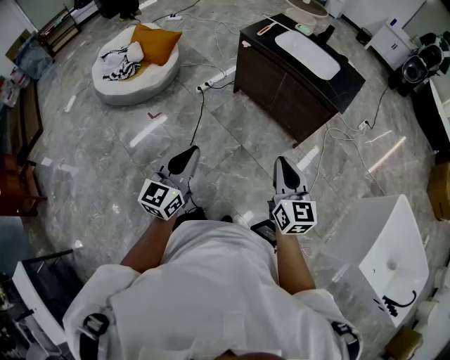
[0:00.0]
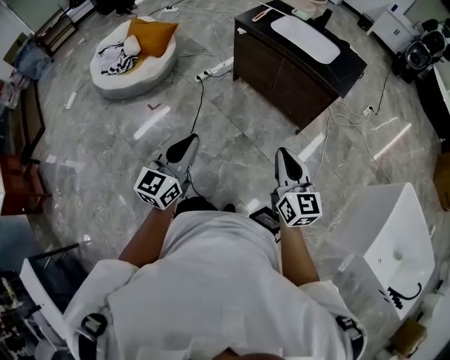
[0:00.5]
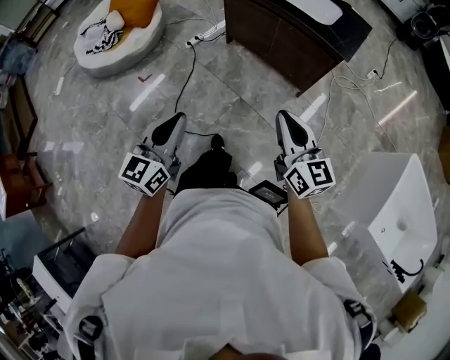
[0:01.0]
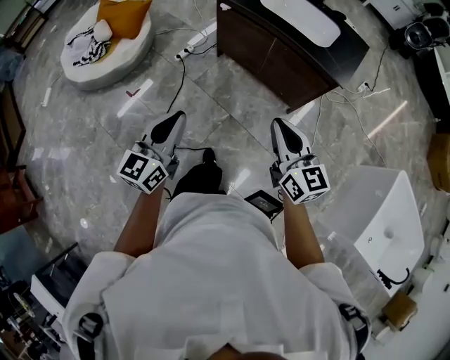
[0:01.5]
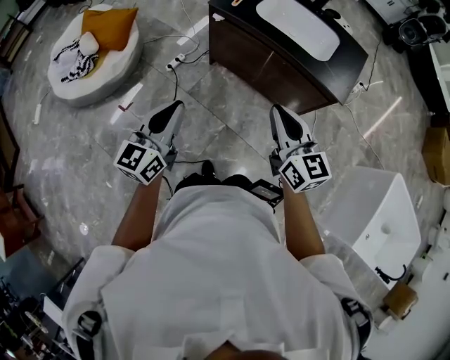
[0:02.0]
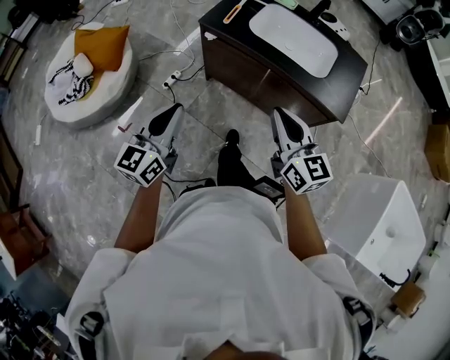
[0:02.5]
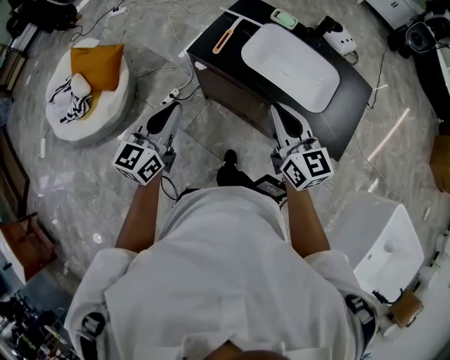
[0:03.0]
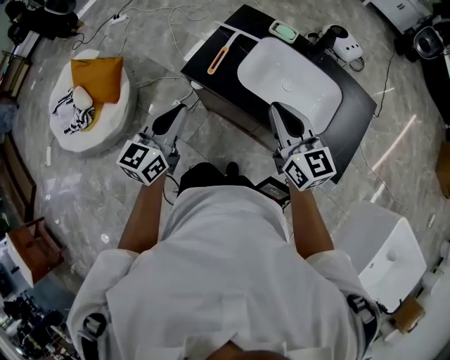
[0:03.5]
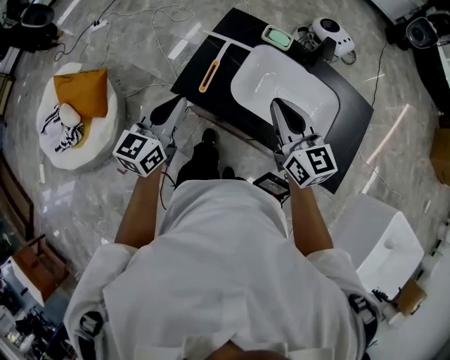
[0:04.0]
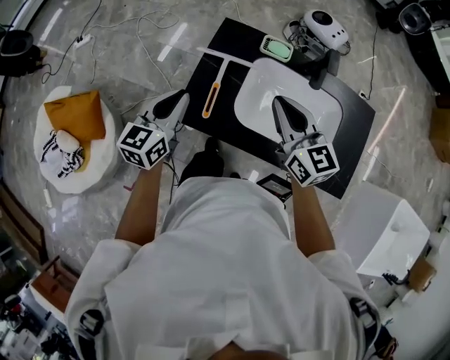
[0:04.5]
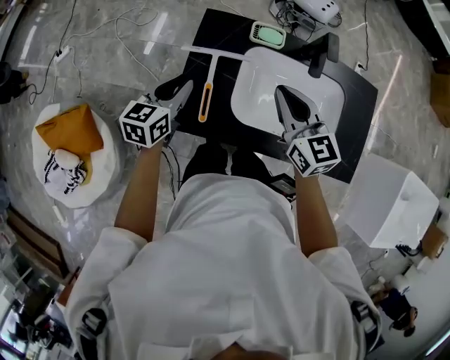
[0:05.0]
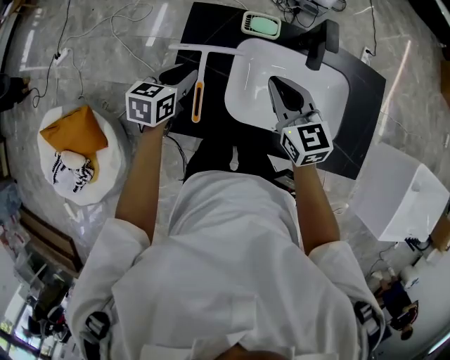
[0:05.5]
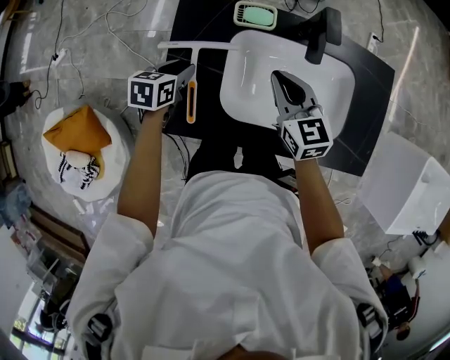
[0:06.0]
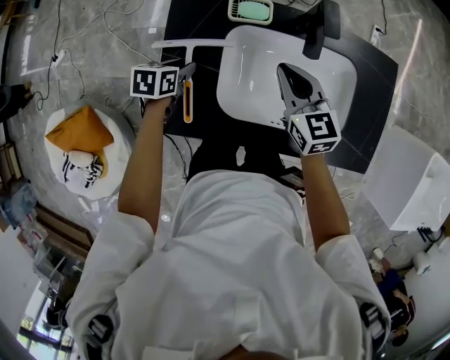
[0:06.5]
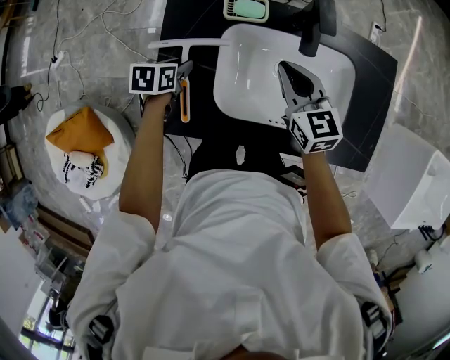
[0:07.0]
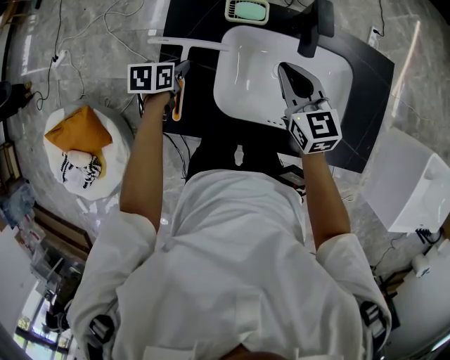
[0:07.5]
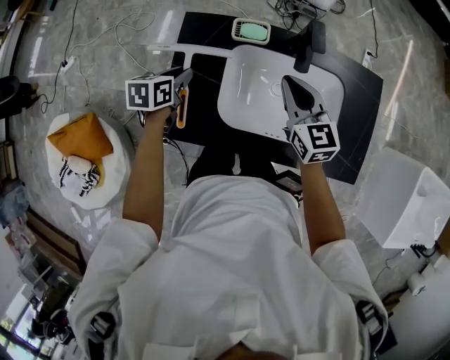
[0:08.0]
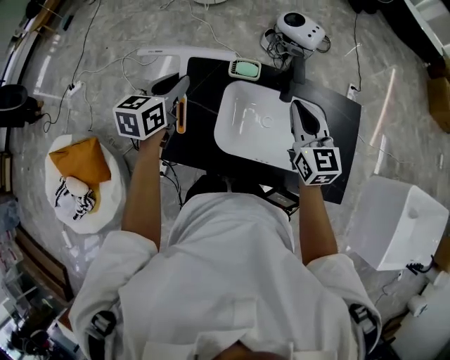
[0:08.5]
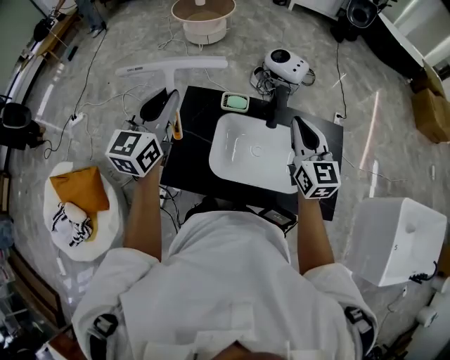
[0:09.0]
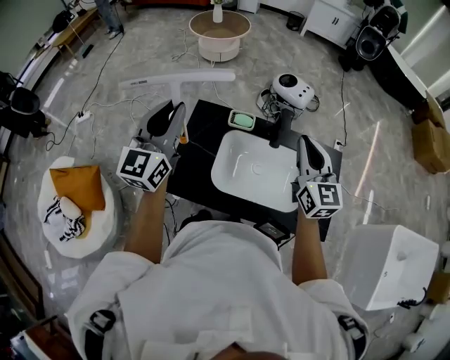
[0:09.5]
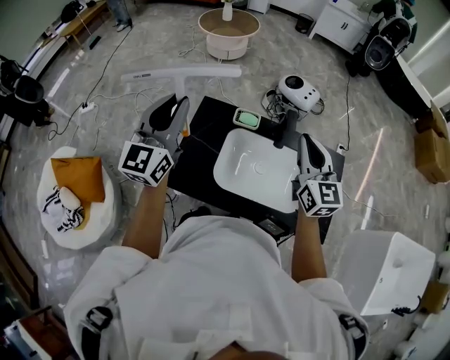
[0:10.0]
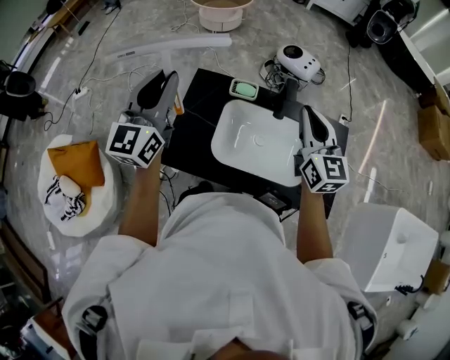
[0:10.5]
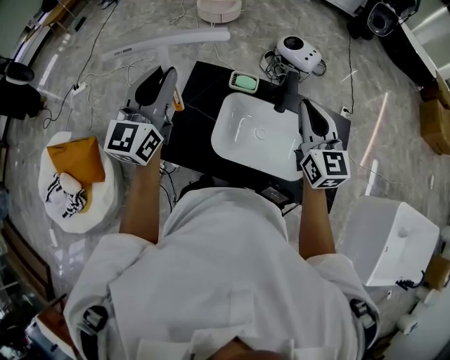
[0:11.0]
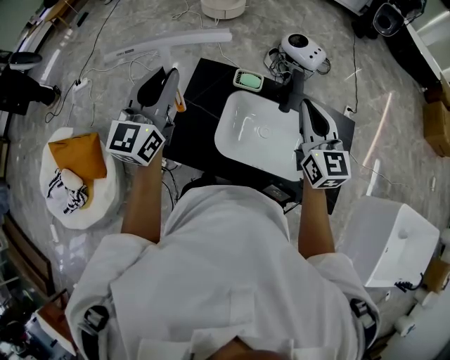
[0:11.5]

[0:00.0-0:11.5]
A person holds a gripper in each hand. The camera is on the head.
0.0 to 2.0 s: The grippers both shift forward by approximately 30 cm.
2.0 to 4.0 s: The two grippers travel together, forward, some 50 cm.
4.0 to 6.0 s: Both grippers move forward and downward, about 30 cm. The left gripper points its fingers roughly 40 degrees further downward, and opens up. The right gripper turns by approximately 20 degrees.
6.0 to 7.5 s: The grippers stay close to where they were, moving slightly.
7.5 to 9.5 s: The left gripper heads upward, covering approximately 40 cm, and tilts its fingers roughly 60 degrees upward. The right gripper is displaced upward by approximately 25 cm, and rotates some 20 degrees.
9.5 to 11.5 s: There are only small adjustments of the grippers.

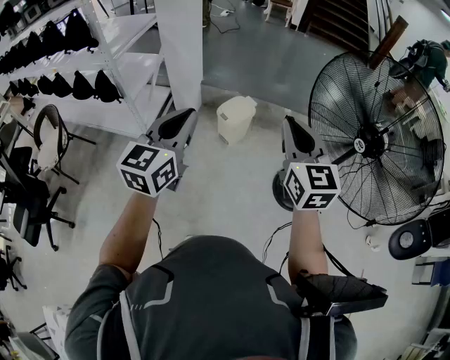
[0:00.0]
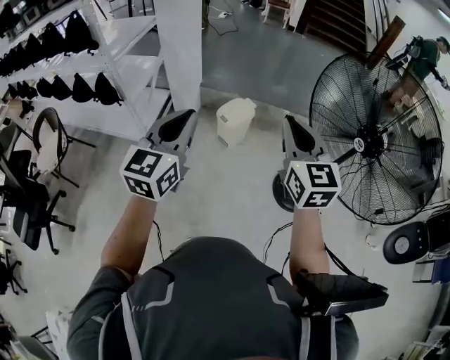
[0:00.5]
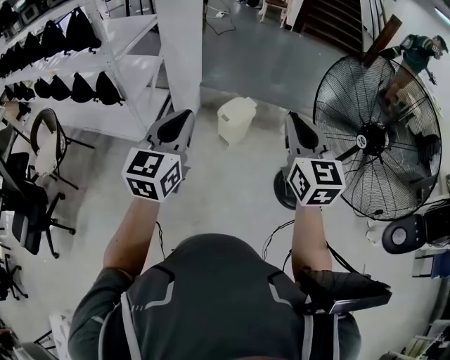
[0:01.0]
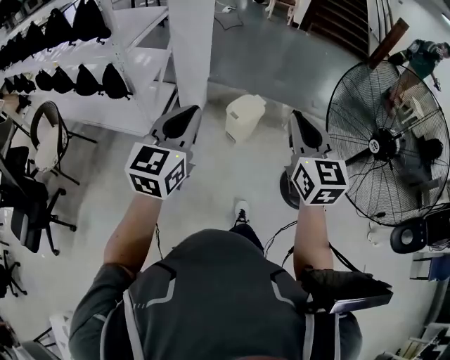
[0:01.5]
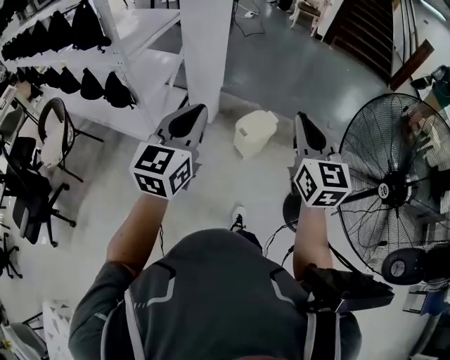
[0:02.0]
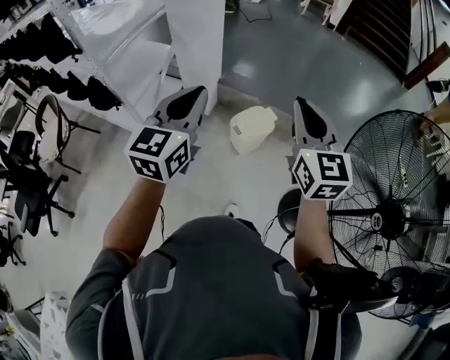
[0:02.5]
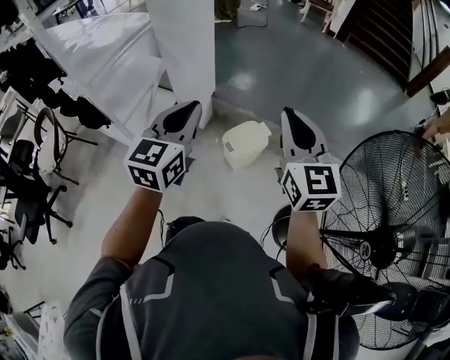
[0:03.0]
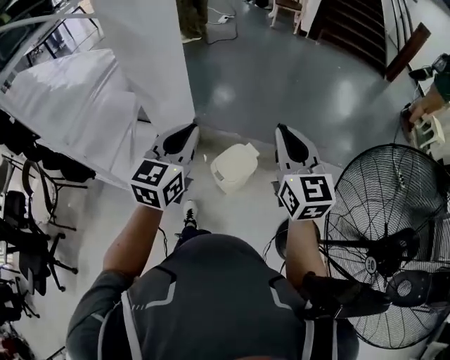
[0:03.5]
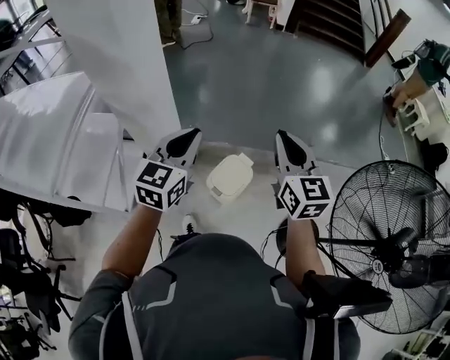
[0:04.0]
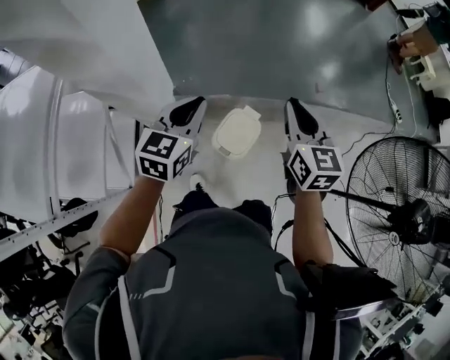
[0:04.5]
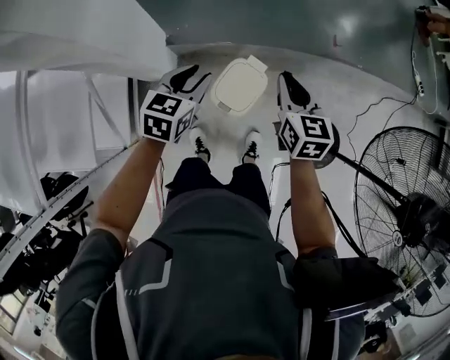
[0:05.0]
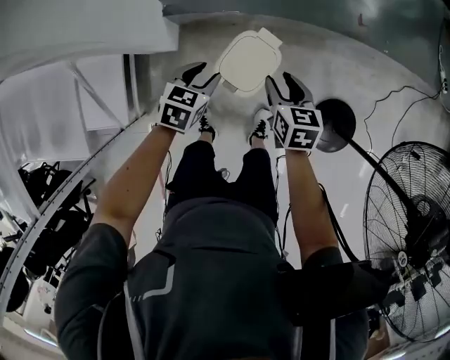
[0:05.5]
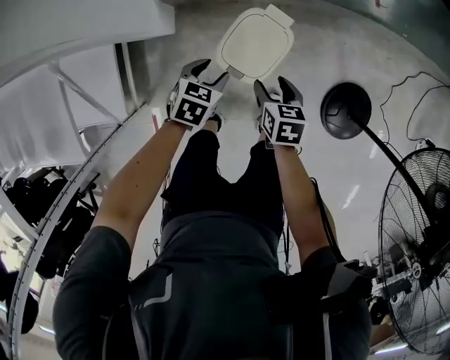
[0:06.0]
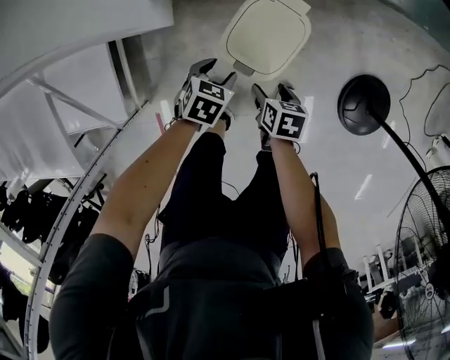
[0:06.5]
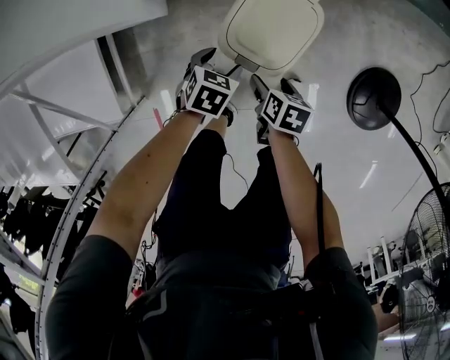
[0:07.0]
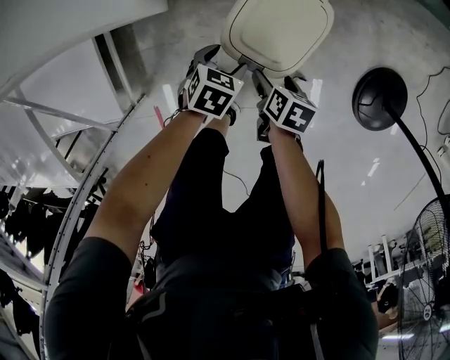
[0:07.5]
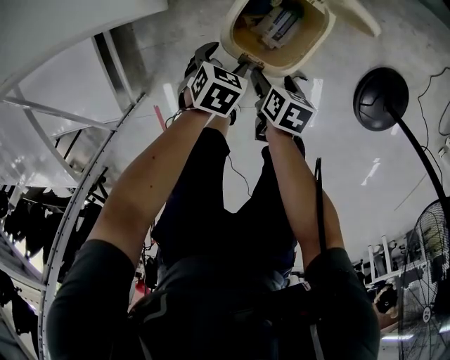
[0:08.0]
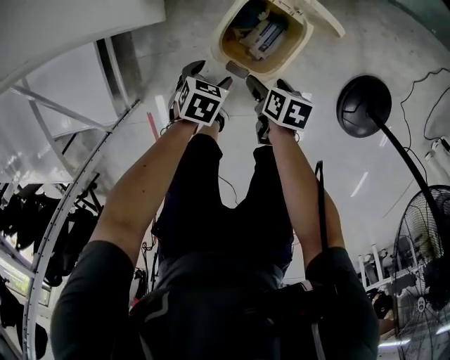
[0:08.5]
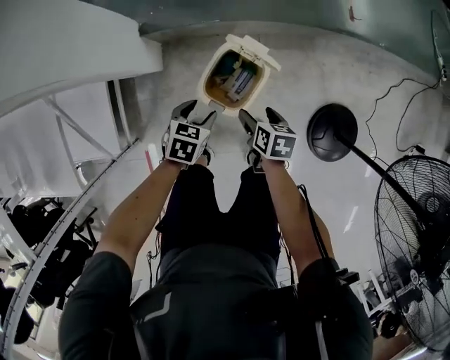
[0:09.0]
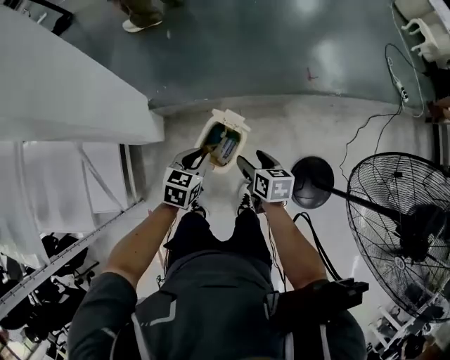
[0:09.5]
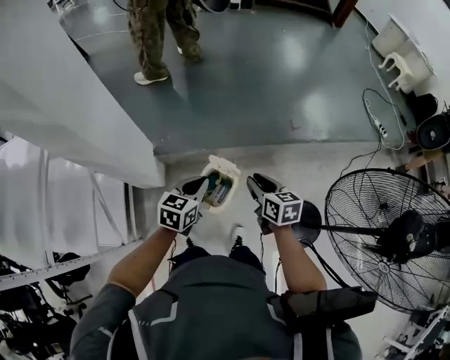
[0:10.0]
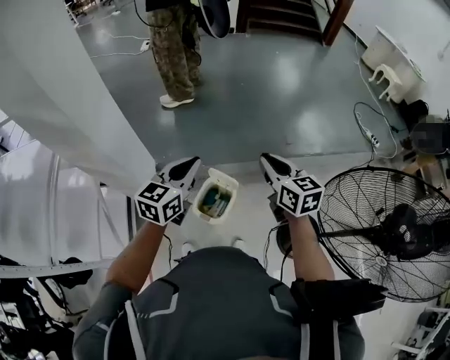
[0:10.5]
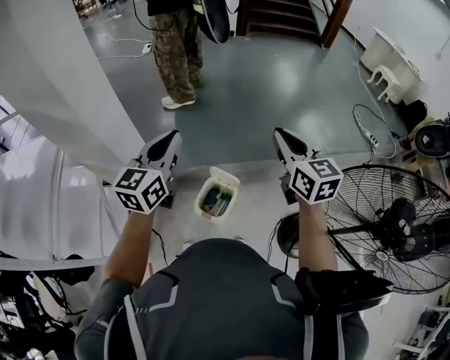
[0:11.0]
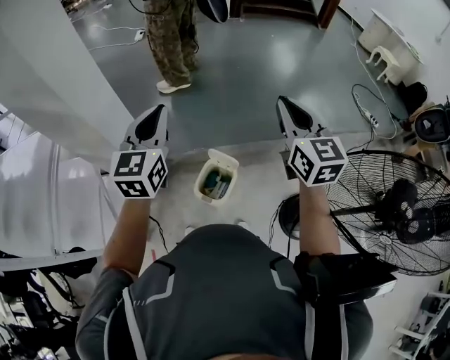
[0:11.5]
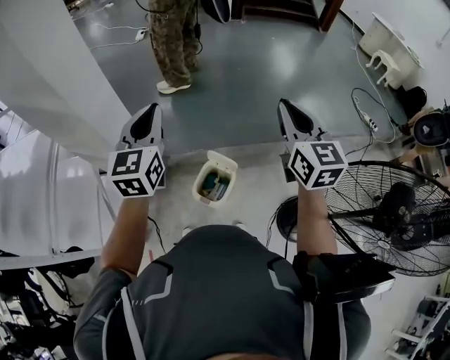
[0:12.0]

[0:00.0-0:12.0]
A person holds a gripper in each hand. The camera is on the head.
0.0 to 2.0 s: The two grippers go some 15 cm forward and to the left.
2.0 to 4.0 s: Both grippers travel together forward, about 40 cm.
4.0 to 6.0 s: The two grippers go approximately 60 cm downward. The left gripper angles its fingers downward, by about 50 degrees, and opens its fingers; the right gripper tips its fingers downward by some 50 degrees, and opens up.
6.0 to 8.0 s: Both grippers travel together downward, roughly 20 cm. The right gripper swivels some 30 degrees.
8.0 to 10.0 s: Both grippers travel together upward, some 50 cm. The left gripper angles its fingers upward, by some 40 degrees, and closes its fingers, while the right gripper angles its fingers upward, by about 30 degrees, and closes its fingers.
10.0 to 12.0 s: The grippers both shift upward by some 30 cm. The right gripper turns by about 40 degrees. The left gripper rotates some 40 degrees.

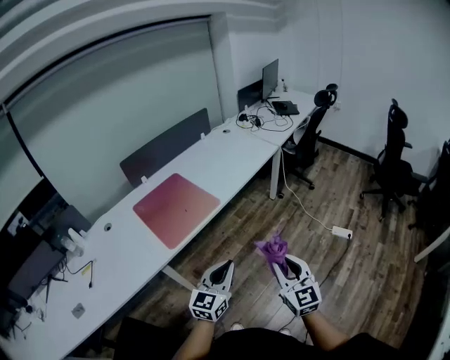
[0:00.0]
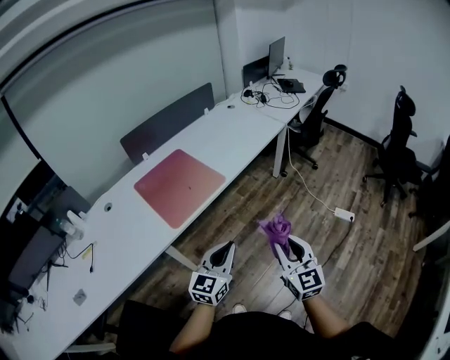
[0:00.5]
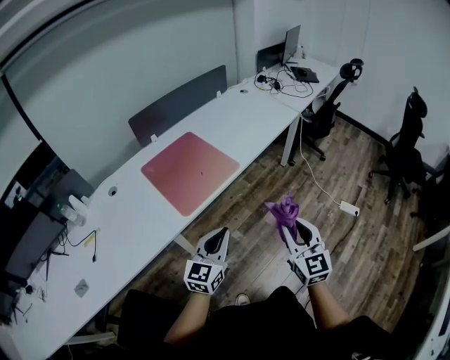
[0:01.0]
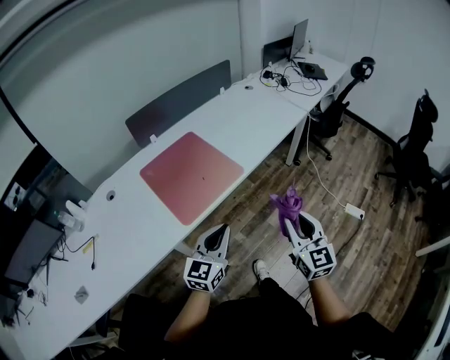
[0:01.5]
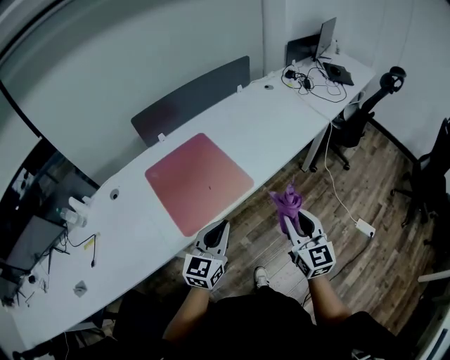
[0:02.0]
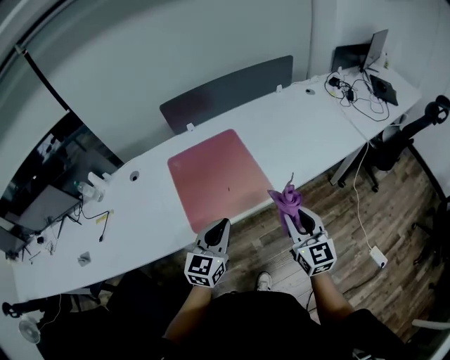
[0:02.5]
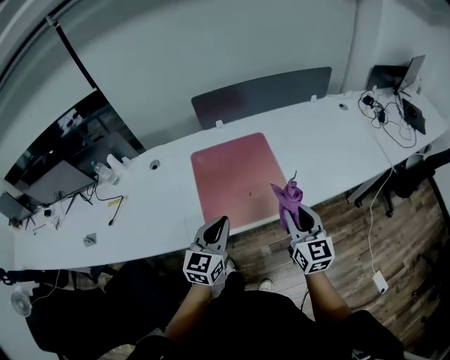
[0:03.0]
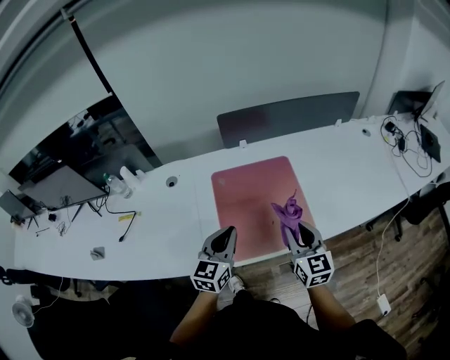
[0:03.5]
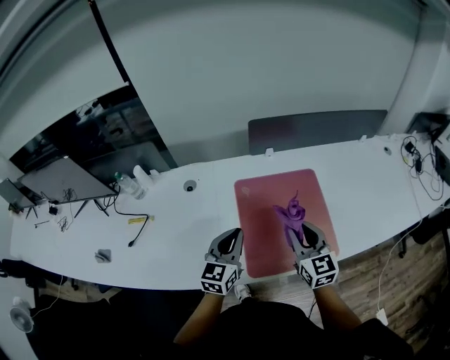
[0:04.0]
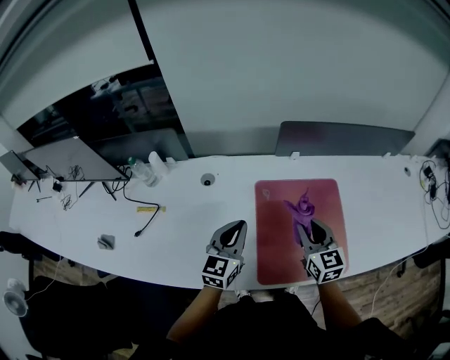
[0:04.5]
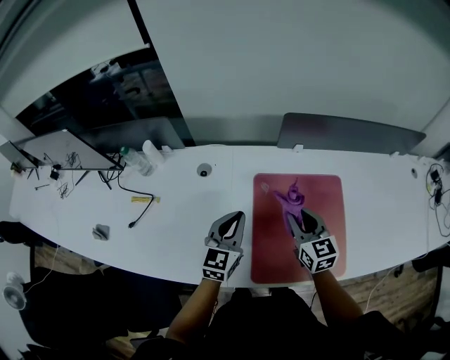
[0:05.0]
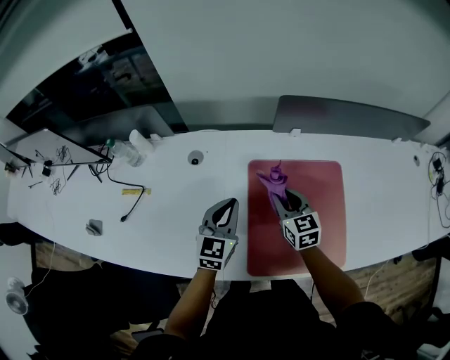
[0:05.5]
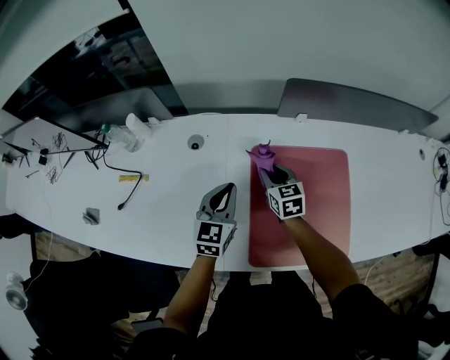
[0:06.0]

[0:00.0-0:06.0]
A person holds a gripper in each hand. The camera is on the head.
0.0 to 2.0 s: The right gripper moves forward, about 25 cm; the left gripper shifts some 25 cm forward and to the left.
2.0 to 4.0 s: The left gripper ends up some 30 cm from where it was, and changes its angle by about 30 degrees; the right gripper changes place by some 40 cm, and turns by approximately 30 degrees.
4.0 to 6.0 s: The right gripper travels forward, downward and to the left by approximately 30 cm, and changes its angle by roughly 20 degrees. The left gripper moves forward, downward and to the left, roughly 15 cm.
